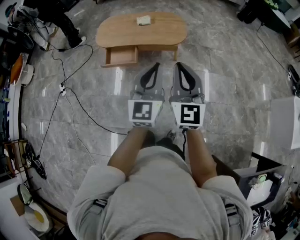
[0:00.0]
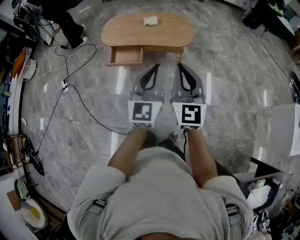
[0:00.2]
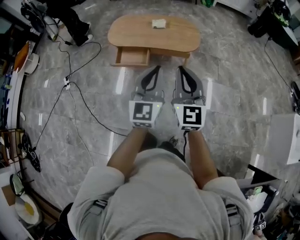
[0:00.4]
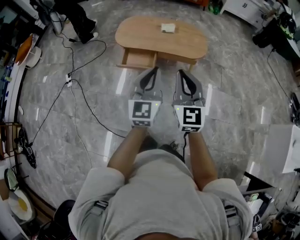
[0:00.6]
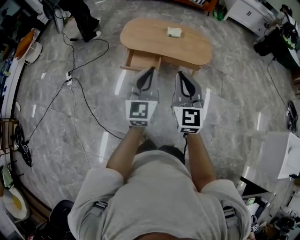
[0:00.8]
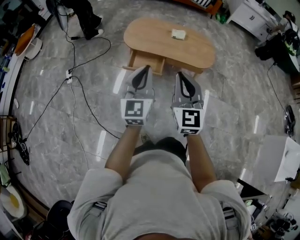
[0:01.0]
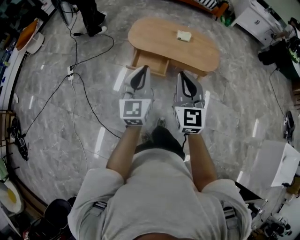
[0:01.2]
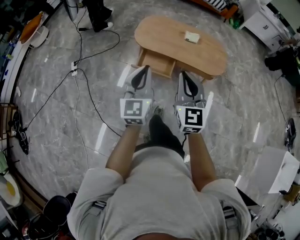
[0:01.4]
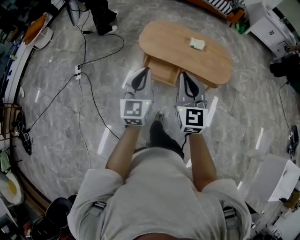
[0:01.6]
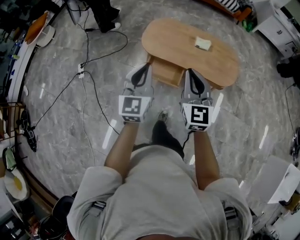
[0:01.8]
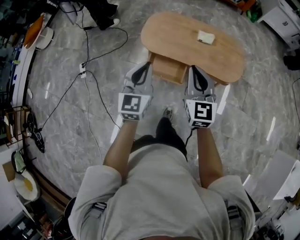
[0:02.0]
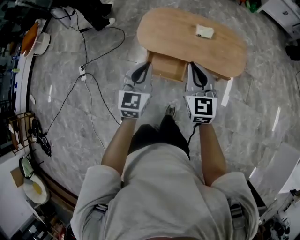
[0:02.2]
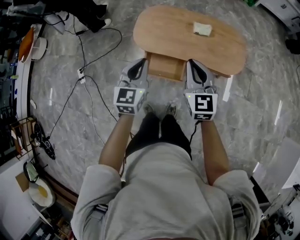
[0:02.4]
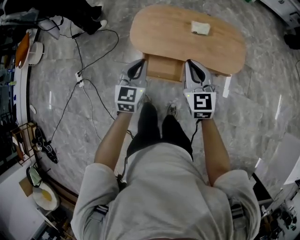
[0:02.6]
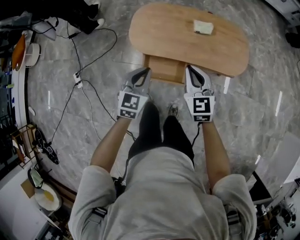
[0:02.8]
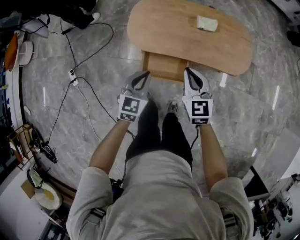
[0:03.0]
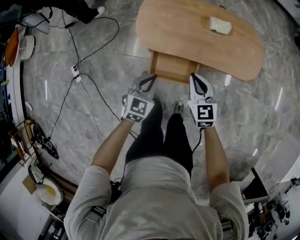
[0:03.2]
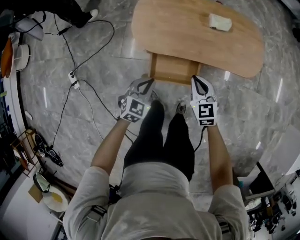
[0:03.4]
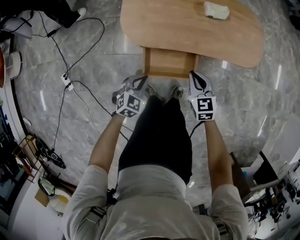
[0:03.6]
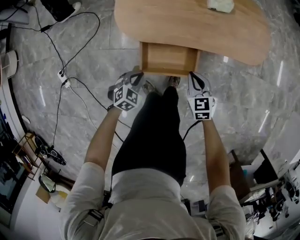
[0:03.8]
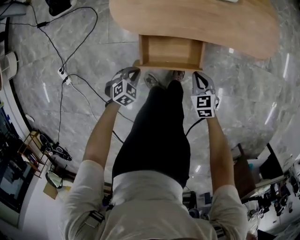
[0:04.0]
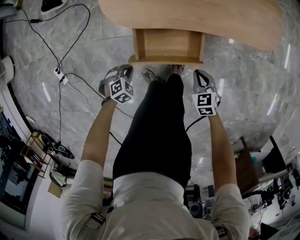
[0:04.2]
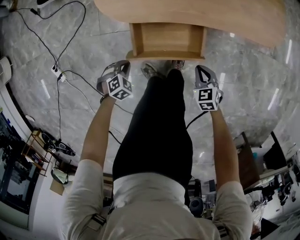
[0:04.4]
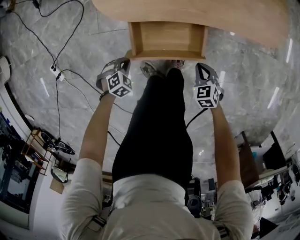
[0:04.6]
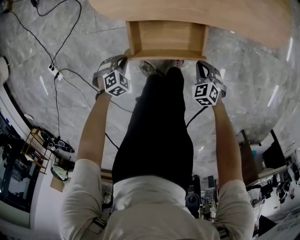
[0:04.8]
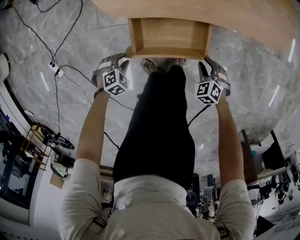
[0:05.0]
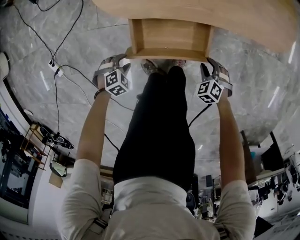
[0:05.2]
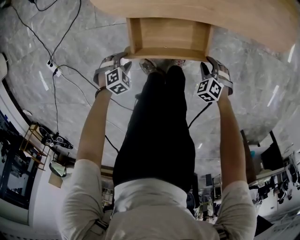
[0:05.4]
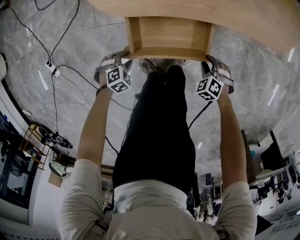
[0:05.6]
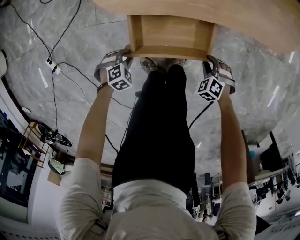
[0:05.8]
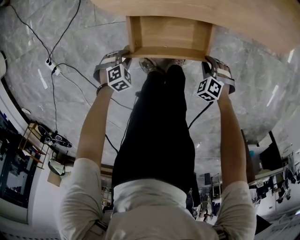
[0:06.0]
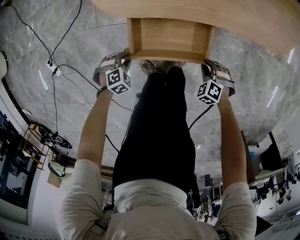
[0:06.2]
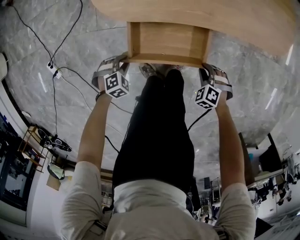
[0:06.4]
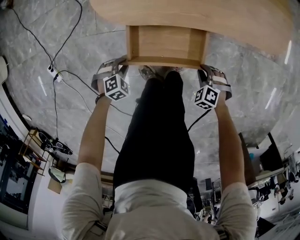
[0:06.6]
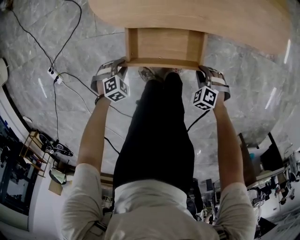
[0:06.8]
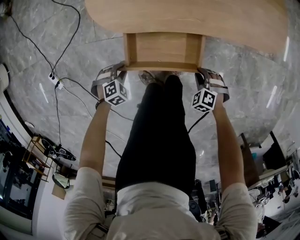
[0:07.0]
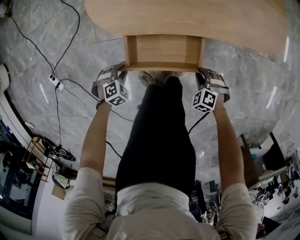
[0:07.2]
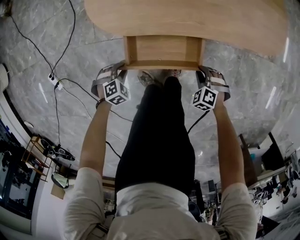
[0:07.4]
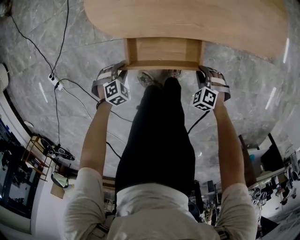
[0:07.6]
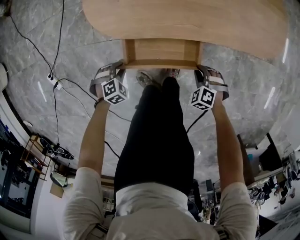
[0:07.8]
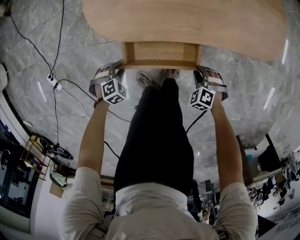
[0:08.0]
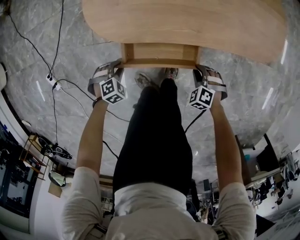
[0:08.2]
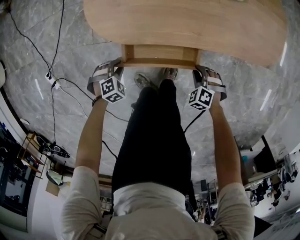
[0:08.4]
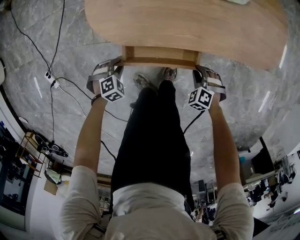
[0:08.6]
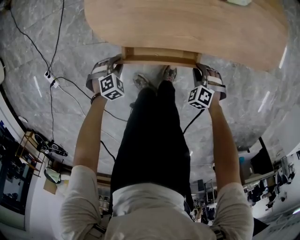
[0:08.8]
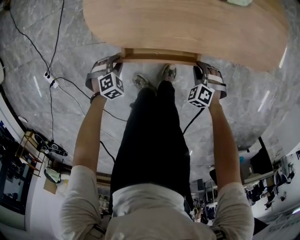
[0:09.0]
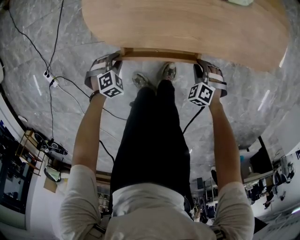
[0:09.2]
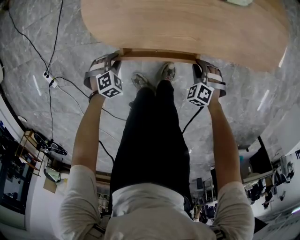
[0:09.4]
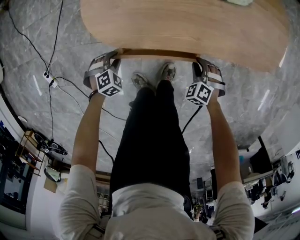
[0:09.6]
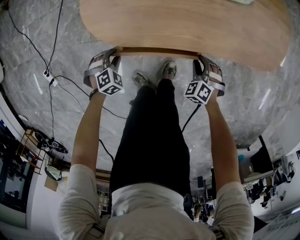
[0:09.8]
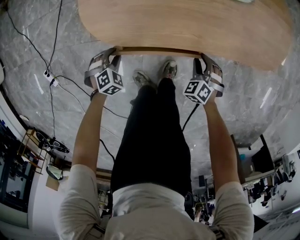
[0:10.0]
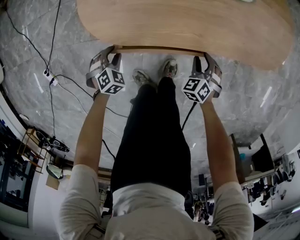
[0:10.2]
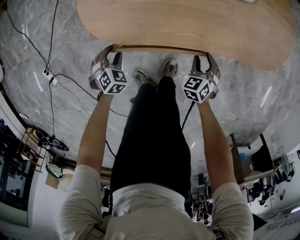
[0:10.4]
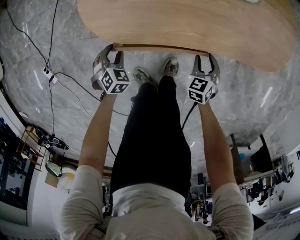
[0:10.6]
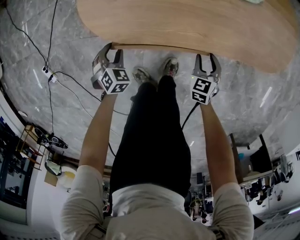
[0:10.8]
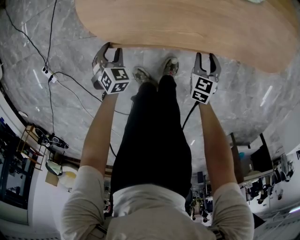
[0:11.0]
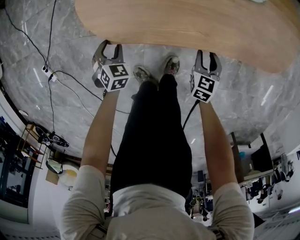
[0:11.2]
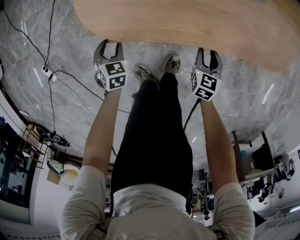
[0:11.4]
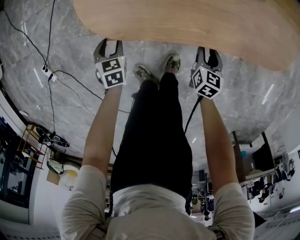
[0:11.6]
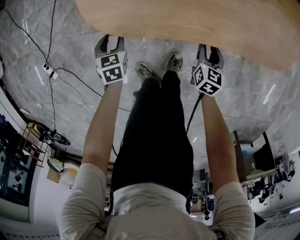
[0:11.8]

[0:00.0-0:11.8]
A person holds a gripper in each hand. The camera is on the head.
0:00.0 to 0:01.4: The two grippers go roughly 35 cm to the left and forward.
0:01.4 to 0:03.0: The grippers both shift forward and downward by approximately 40 cm. The right gripper changes its angle by some 20 degrees, while the left gripper turns by about 40 degrees.
0:03.0 to 0:04.4: Both grippers travel together downward, about 40 cm. The right gripper tilts its fingers some 30 degrees downward; the left gripper tips its fingers downward by some 40 degrees.
0:04.4 to 0:06.0: The left gripper moves downward, some 5 cm, and opens up. The right gripper goes about 10 cm downward, changes its angle by some 40 degrees, and opens up.
0:06.0 to 0:07.4: The left gripper changes place by some 5 cm.
0:07.4 to 0:08.8: The left gripper changes place by about 10 cm. The right gripper moves approximately 10 cm.
0:08.8 to 0:10.4: The left gripper rotates roughly 30 degrees, while the right gripper moves approximately 5 cm, changes its angle by some 40 degrees, and opens its fingers.
0:10.4 to 0:11.8: The right gripper twists about 40 degrees clockwise, seen from behind. The left gripper twists about 40 degrees counterclockwise, seen from behind.

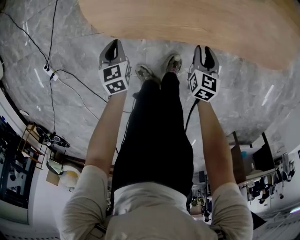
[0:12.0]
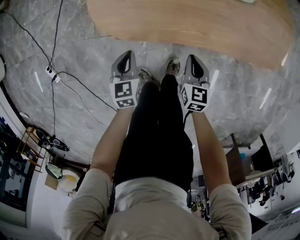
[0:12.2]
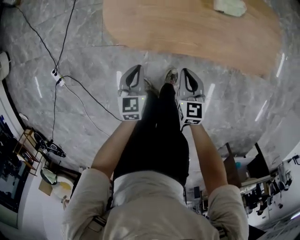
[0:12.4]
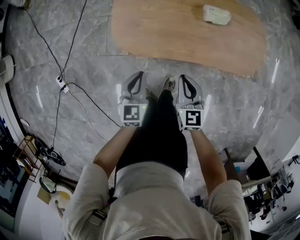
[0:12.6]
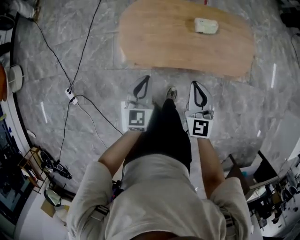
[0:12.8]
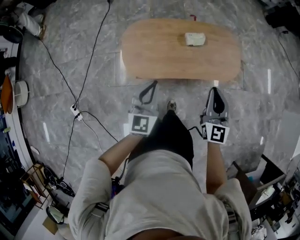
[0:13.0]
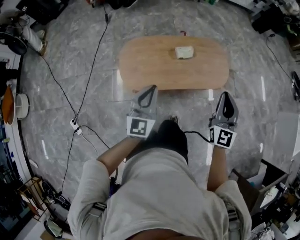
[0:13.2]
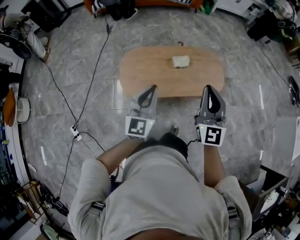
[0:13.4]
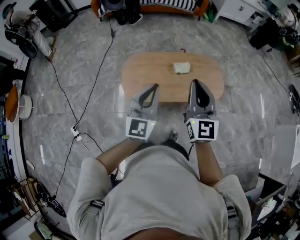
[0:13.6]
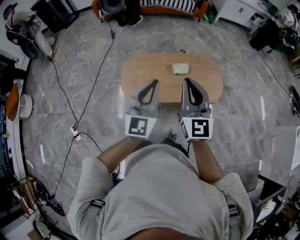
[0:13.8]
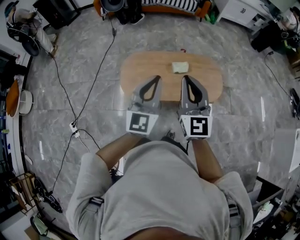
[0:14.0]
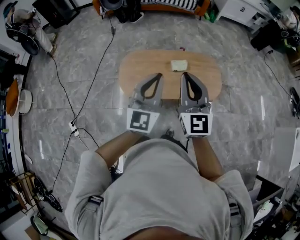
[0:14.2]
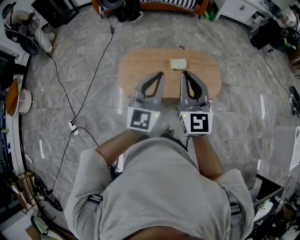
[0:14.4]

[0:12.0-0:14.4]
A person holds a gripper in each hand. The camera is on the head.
0:12.0 to 0:13.2: Both grippers move upward, about 60 cm. The right gripper angles its fingers upward, by roughly 50 degrees, and closes its fingers, while the left gripper tilts its fingers roughly 50 degrees upward.
0:13.2 to 0:14.4: The right gripper travels upward and to the left by about 15 cm, and changes its angle by approximately 20 degrees; the left gripper moves upward and to the right, approximately 15 cm.

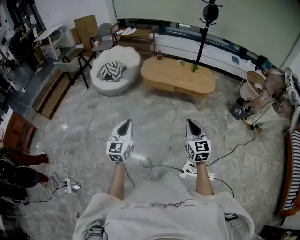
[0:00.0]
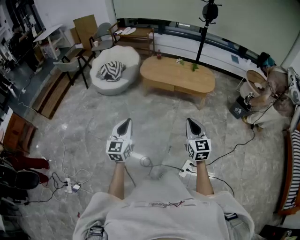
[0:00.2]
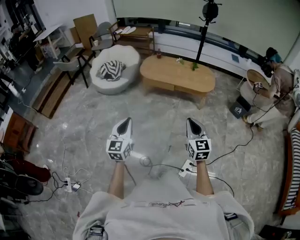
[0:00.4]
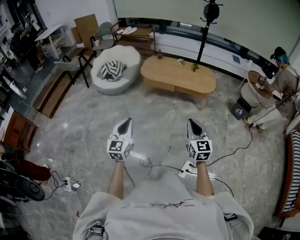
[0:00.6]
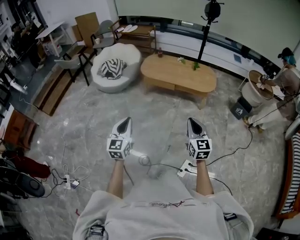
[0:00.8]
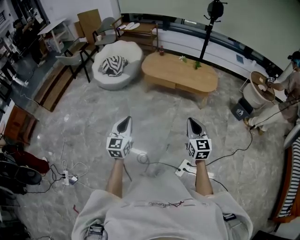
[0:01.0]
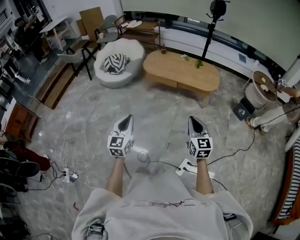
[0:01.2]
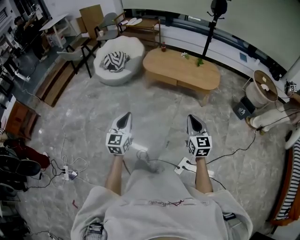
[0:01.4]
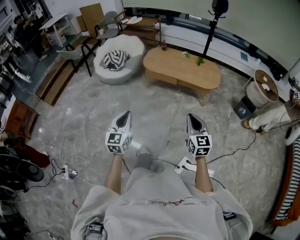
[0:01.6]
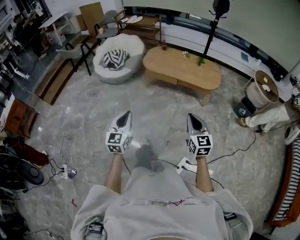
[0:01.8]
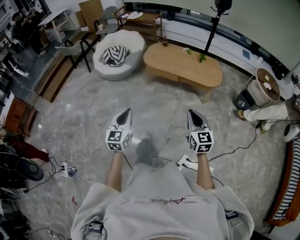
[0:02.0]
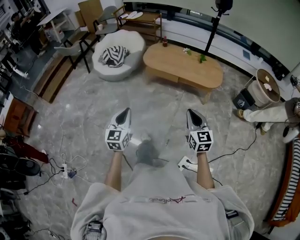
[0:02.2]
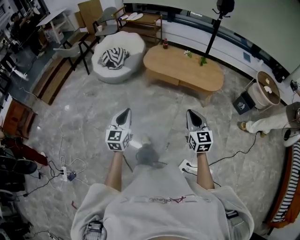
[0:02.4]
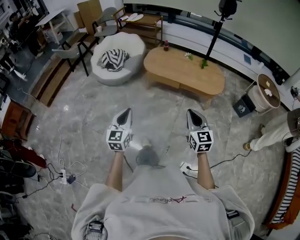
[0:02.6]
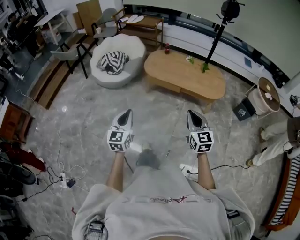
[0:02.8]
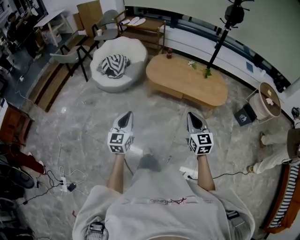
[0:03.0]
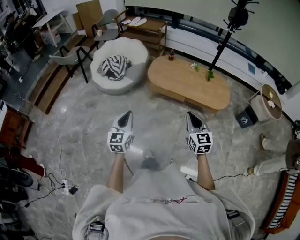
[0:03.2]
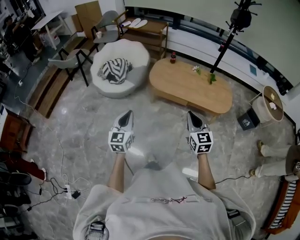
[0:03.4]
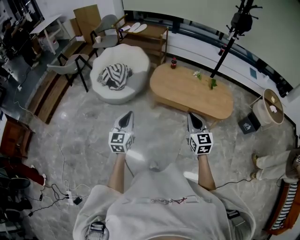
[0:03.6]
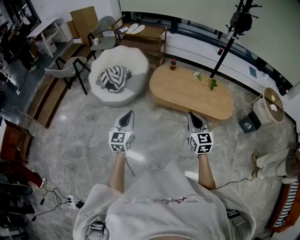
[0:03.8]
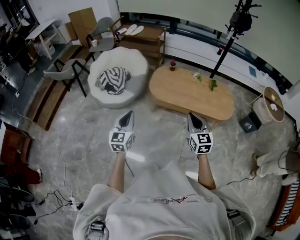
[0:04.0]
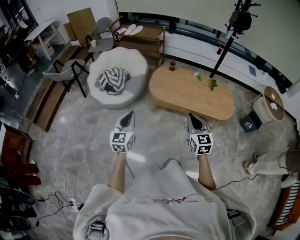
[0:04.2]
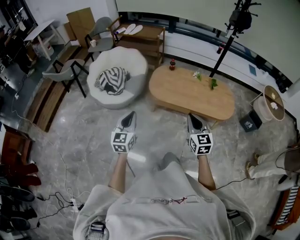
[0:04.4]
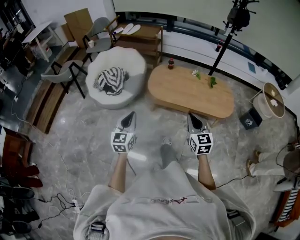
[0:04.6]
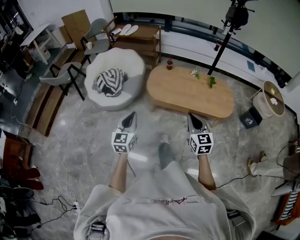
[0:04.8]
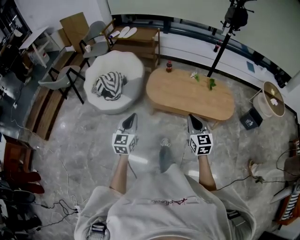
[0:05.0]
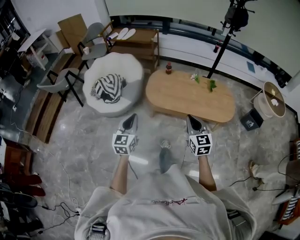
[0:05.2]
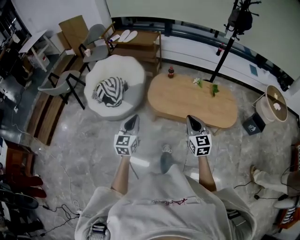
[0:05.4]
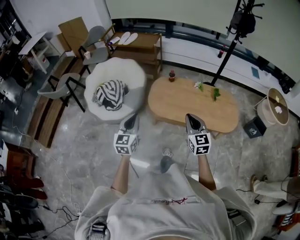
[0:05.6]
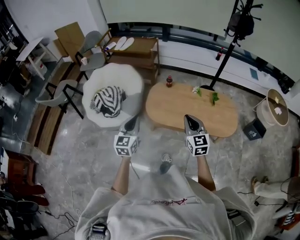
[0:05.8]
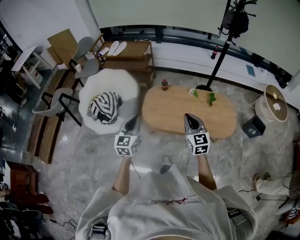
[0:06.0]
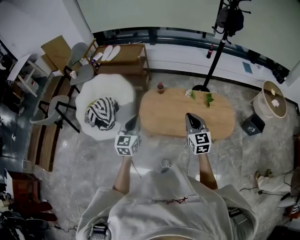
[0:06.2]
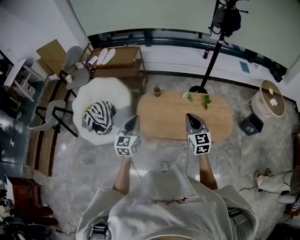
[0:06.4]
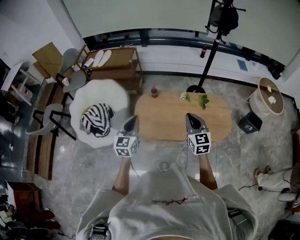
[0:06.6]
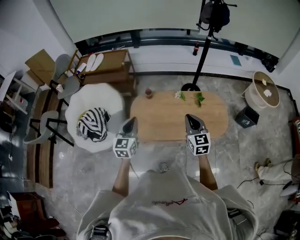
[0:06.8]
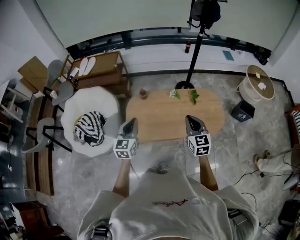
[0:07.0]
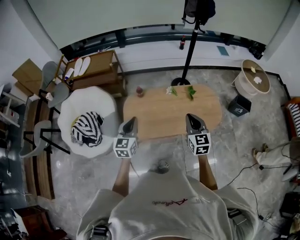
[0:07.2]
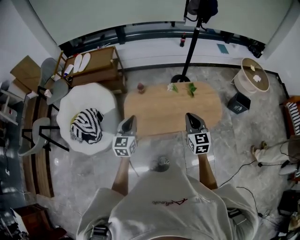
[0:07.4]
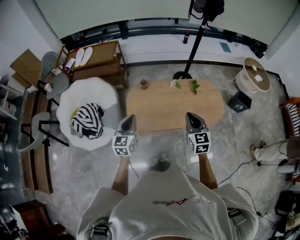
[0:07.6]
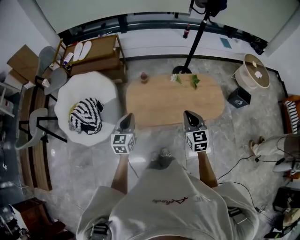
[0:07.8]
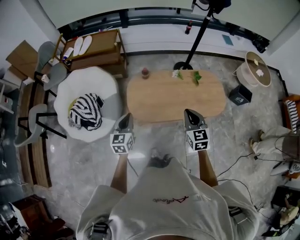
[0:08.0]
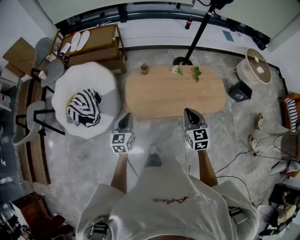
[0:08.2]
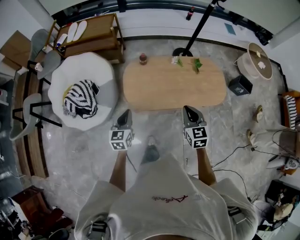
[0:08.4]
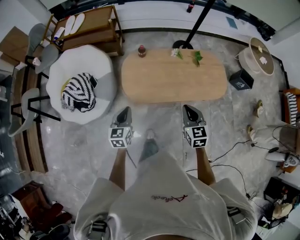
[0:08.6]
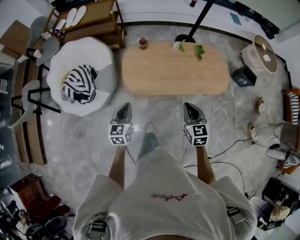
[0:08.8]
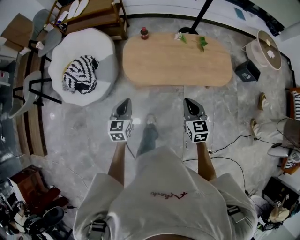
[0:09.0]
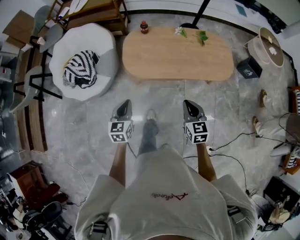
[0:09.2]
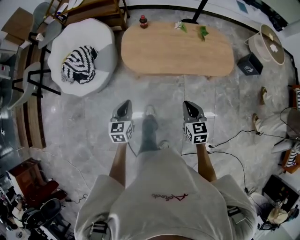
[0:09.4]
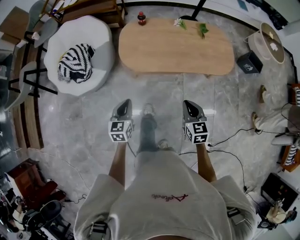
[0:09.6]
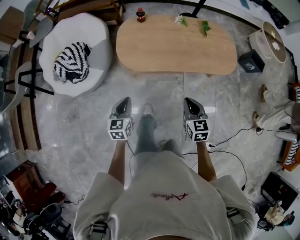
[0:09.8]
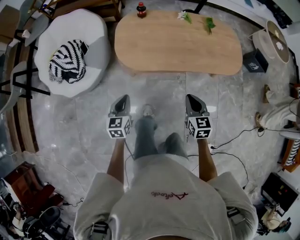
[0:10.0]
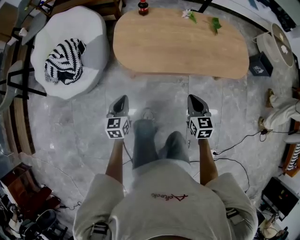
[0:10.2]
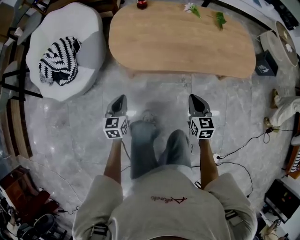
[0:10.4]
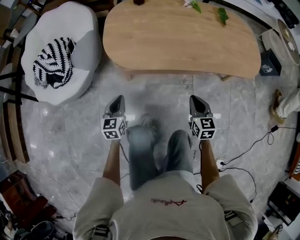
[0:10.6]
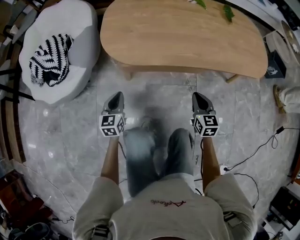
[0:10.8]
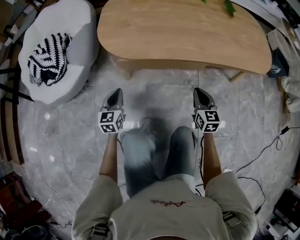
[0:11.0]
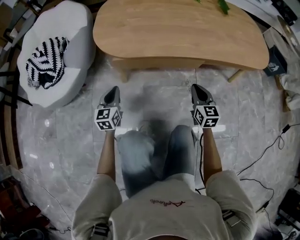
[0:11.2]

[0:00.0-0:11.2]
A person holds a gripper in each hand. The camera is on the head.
0:00.0 to 0:01.6: The left gripper travels to the right by some 5 cm. Meanwhile the right gripper moves to the right and forward, some 10 cm.
0:01.6 to 0:03.2: The two grippers go approximately 30 cm forward.
0:03.2 to 0:04.8: Both grippers move forward, about 20 cm.
0:04.8 to 0:06.4: The grippers both shift forward by some 35 cm.
0:06.4 to 0:08.0: The right gripper goes some 5 cm to the left; the left gripper shifts approximately 15 cm downward and to the left.
0:08.0 to 0:09.6: The grippers both shift backward and downward by some 25 cm.
0:09.6 to 0:11.2: The two grippers go approximately 50 cm downward.
